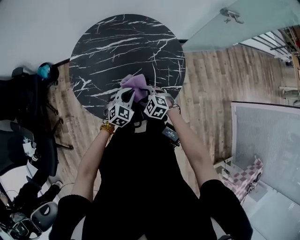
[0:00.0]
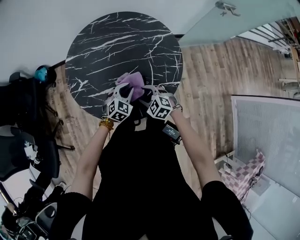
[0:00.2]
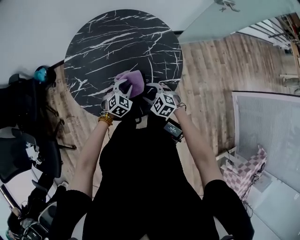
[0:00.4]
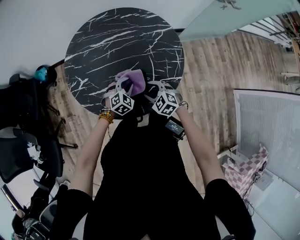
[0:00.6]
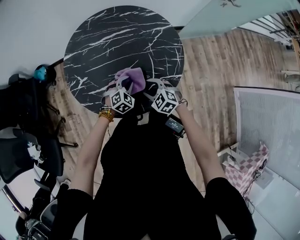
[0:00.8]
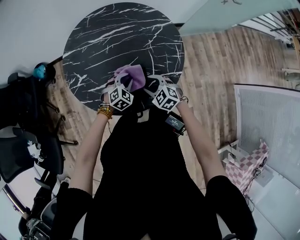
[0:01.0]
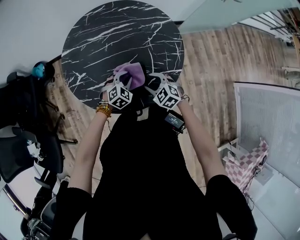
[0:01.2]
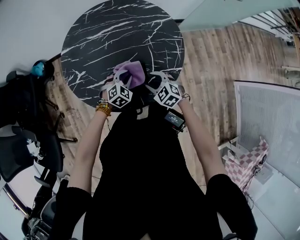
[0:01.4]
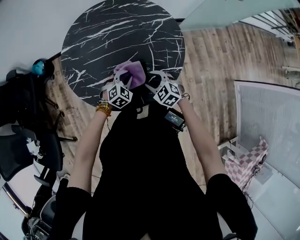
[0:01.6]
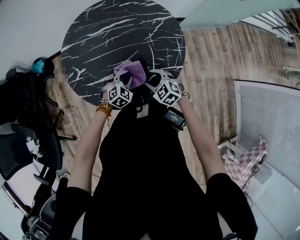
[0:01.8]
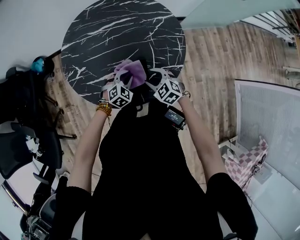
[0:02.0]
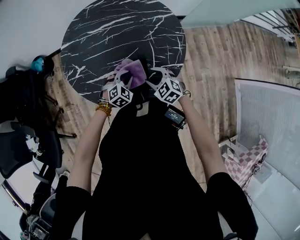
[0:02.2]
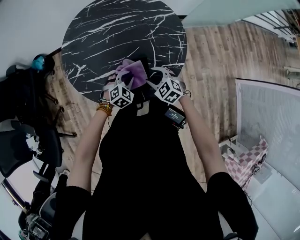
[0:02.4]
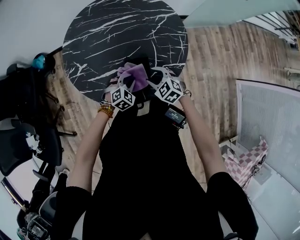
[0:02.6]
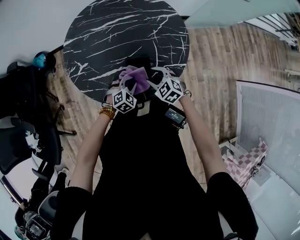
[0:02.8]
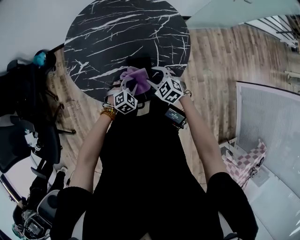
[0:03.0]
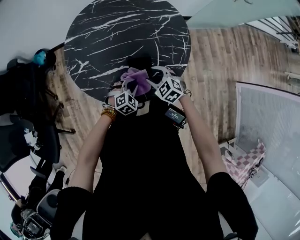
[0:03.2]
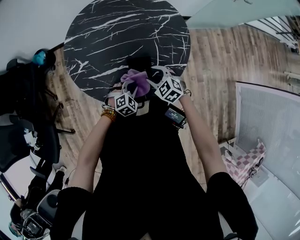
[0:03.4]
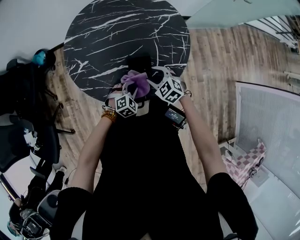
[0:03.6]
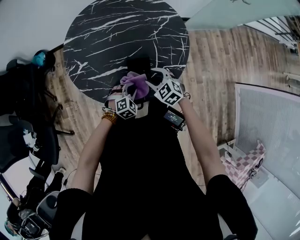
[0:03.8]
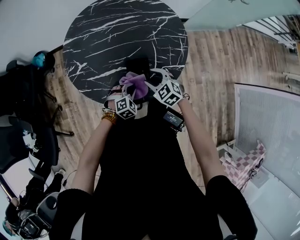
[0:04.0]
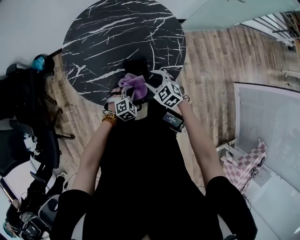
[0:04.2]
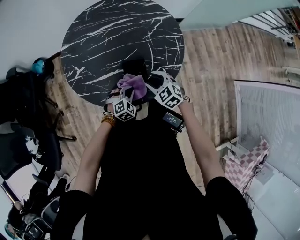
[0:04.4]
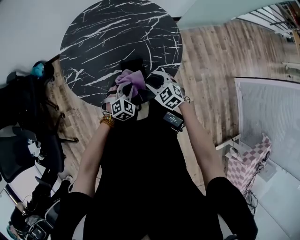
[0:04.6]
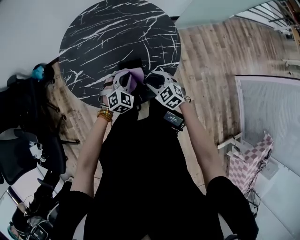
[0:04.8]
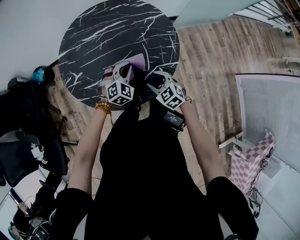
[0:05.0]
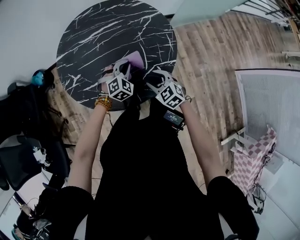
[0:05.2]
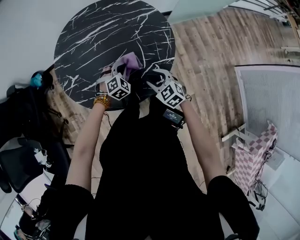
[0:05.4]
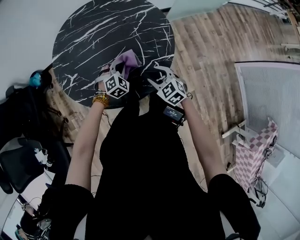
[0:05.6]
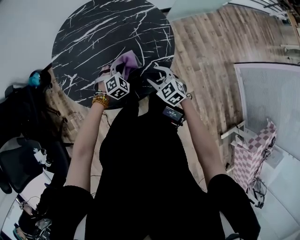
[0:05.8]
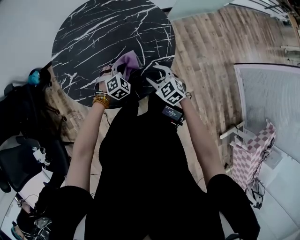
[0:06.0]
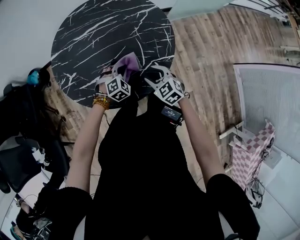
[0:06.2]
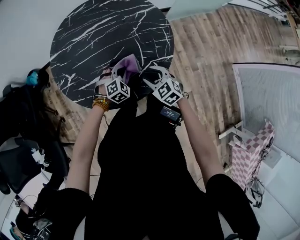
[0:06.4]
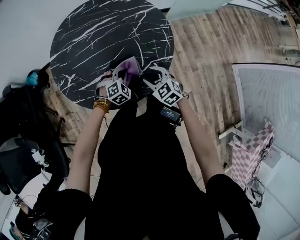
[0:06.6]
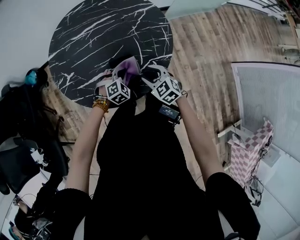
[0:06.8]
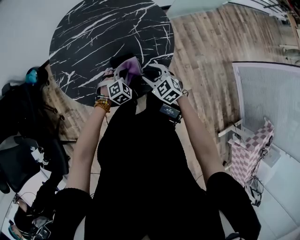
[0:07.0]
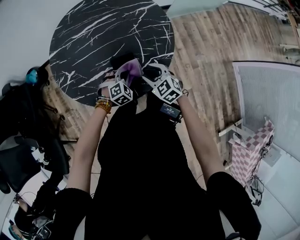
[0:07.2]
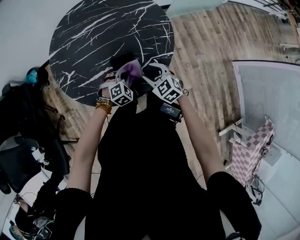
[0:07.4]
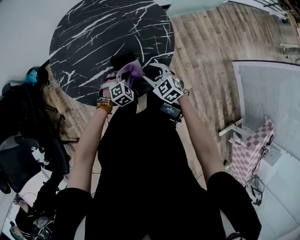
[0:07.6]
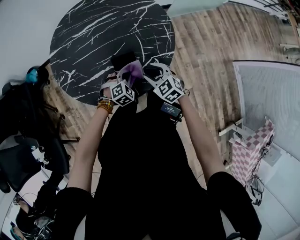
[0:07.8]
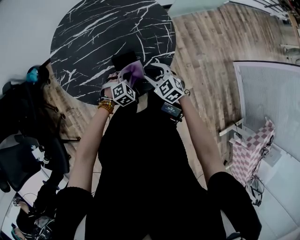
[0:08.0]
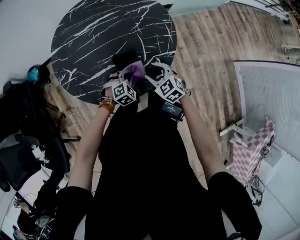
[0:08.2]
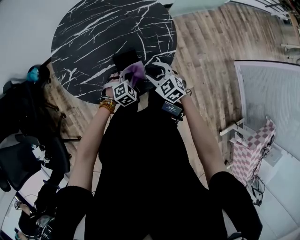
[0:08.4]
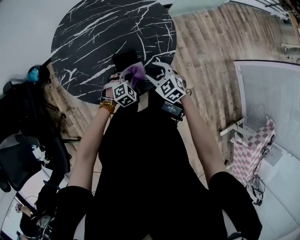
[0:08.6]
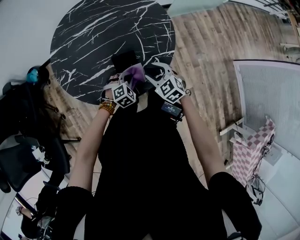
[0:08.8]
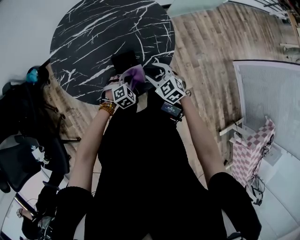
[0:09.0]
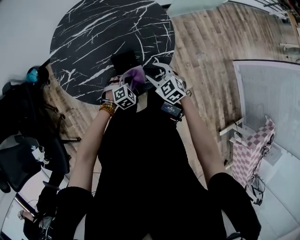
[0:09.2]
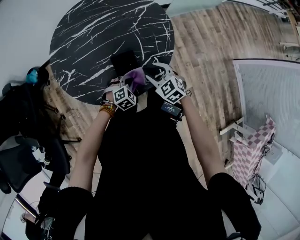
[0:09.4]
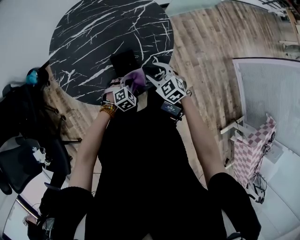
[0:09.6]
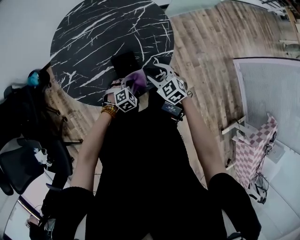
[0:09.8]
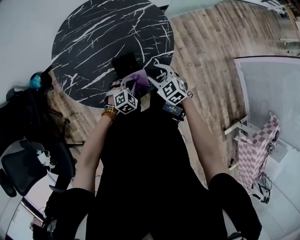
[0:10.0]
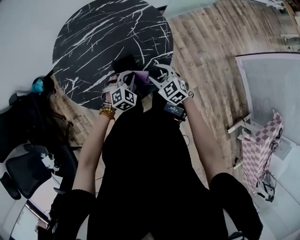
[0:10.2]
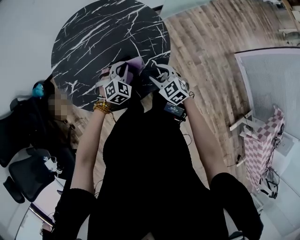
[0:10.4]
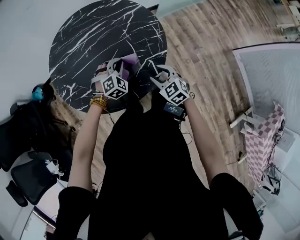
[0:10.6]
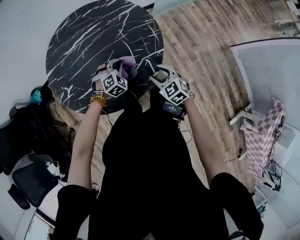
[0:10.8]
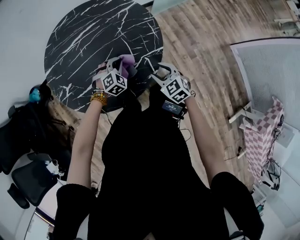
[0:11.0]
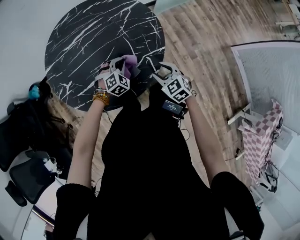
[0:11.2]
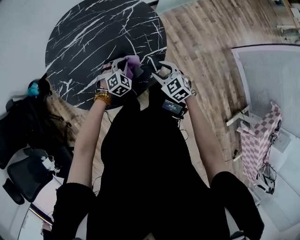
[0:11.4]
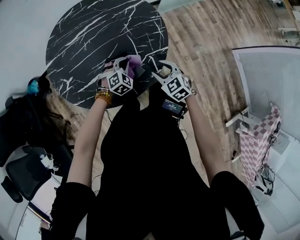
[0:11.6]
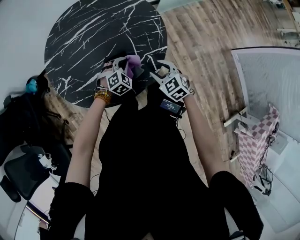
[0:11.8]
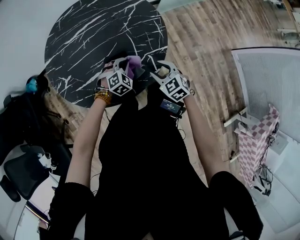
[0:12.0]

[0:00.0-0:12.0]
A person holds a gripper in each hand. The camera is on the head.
0.0 to 1.6 s: The left gripper is displaced downward by about 5 cm. Meanwhile the right gripper heads to the right, covering some 5 cm.
1.6 to 3.0 s: The left gripper goes about 5 cm backward.
3.0 to 4.4 s: The grippers stay close to where they were, moving slightly.
4.4 to 6.0 s: The left gripper is displaced forward by about 10 cm.
6.0 to 7.6 s: The left gripper is displaced backward by some 5 cm.
7.6 to 9.0 s: The grippers move only a little.
9.0 to 10.4 s: The left gripper travels upward and forward by about 15 cm.
10.4 to 12.0 s: The left gripper moves downward, approximately 5 cm.

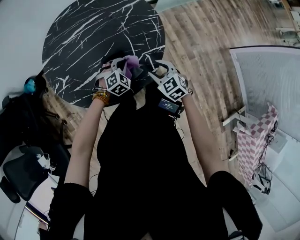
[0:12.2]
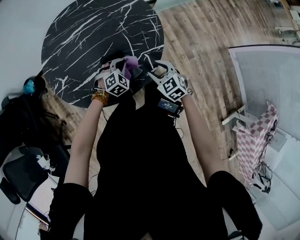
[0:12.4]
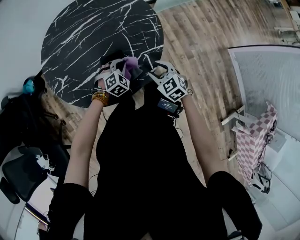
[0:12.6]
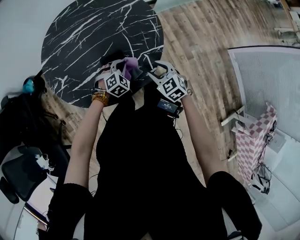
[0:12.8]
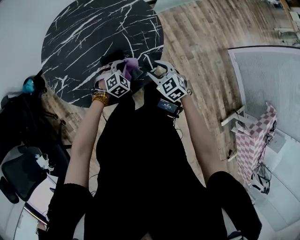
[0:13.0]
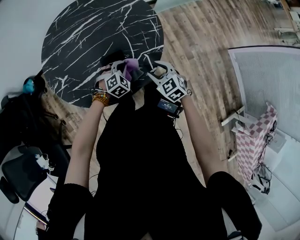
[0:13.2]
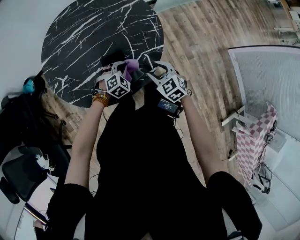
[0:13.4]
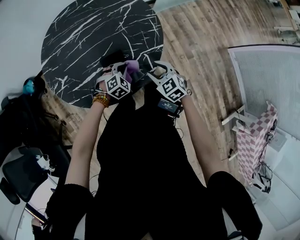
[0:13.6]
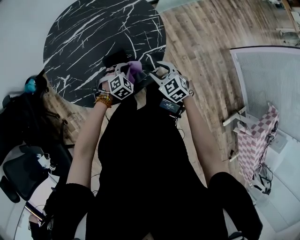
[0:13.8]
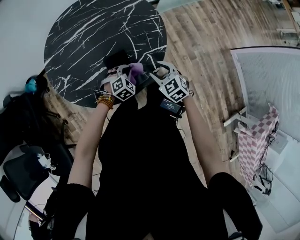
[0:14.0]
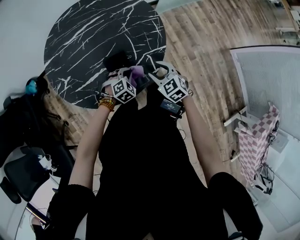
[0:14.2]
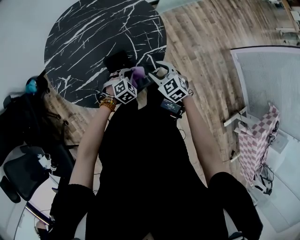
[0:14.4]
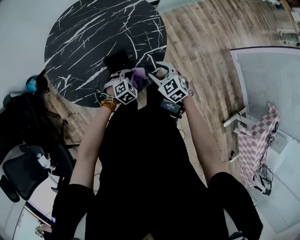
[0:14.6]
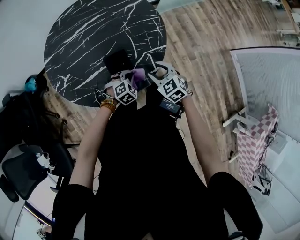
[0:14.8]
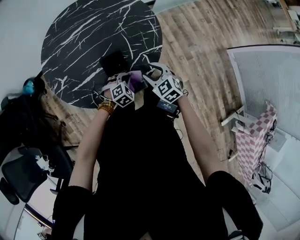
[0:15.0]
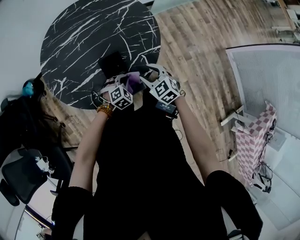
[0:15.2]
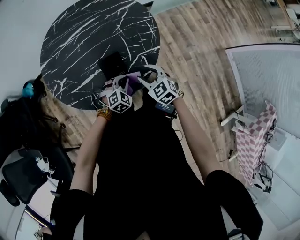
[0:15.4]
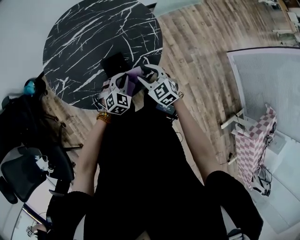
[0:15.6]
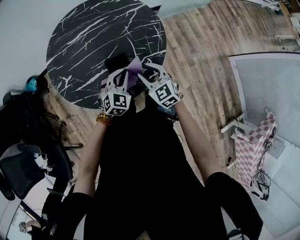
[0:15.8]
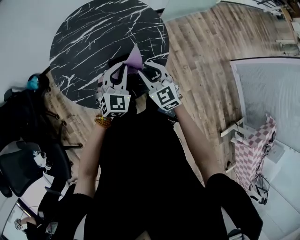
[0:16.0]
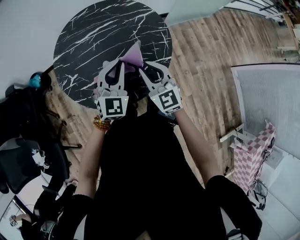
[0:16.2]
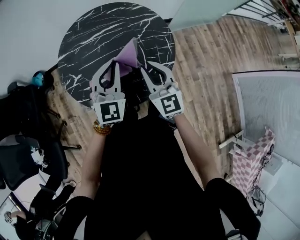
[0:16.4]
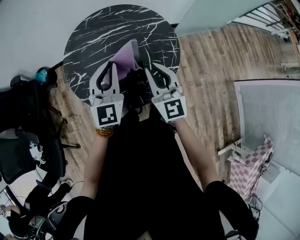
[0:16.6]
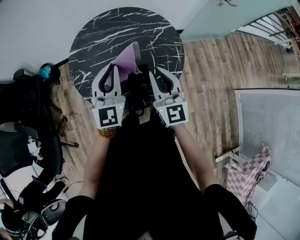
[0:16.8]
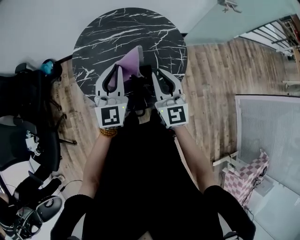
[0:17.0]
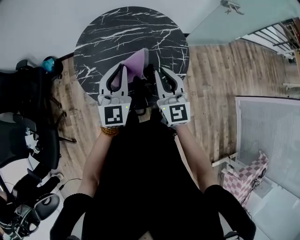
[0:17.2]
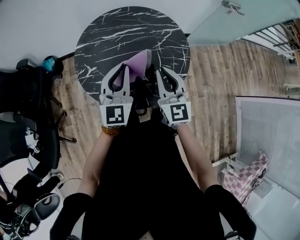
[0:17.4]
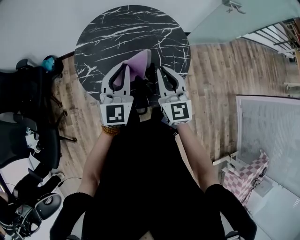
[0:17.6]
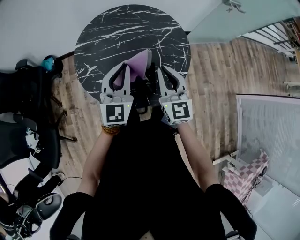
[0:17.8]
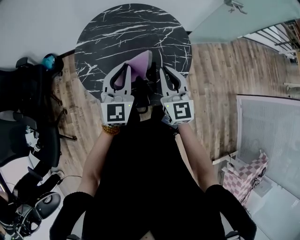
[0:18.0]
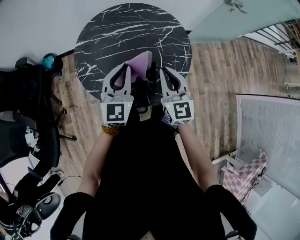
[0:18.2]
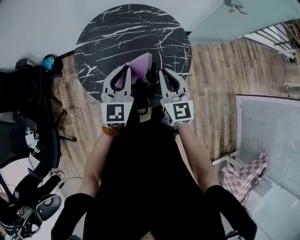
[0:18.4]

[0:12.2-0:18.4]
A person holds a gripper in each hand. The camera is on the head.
12.2 to 13.8 s: The grippers make only small movements.
13.8 to 15.4 s: The left gripper shifts approximately 5 cm backward.
15.4 to 16.8 s: The right gripper shifts roughly 25 cm upward, points its fingers about 40 degrees further upward, and closes up, while the left gripper moves upward and to the left, some 35 cm, and angles its fingers upward, by about 50 degrees.
16.8 to 18.4 s: The grippers make only small movements.

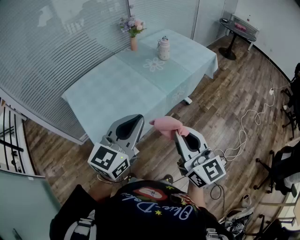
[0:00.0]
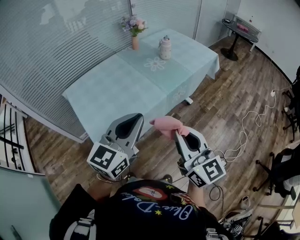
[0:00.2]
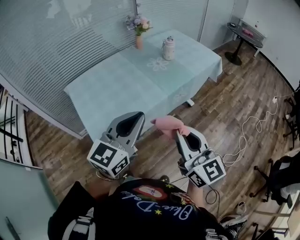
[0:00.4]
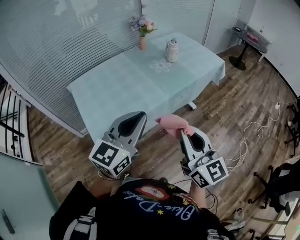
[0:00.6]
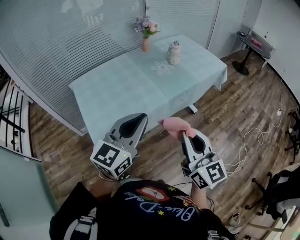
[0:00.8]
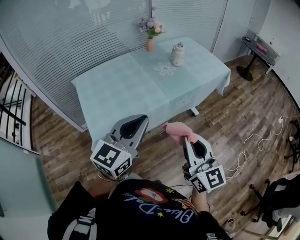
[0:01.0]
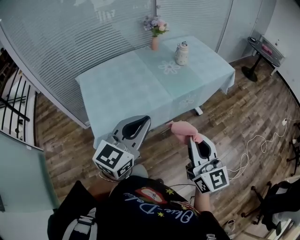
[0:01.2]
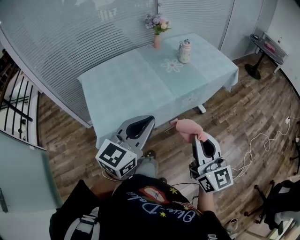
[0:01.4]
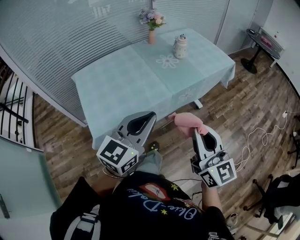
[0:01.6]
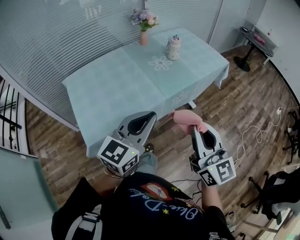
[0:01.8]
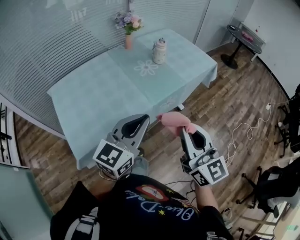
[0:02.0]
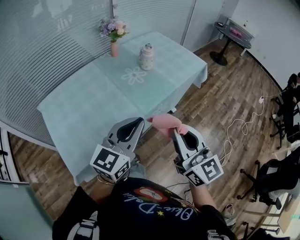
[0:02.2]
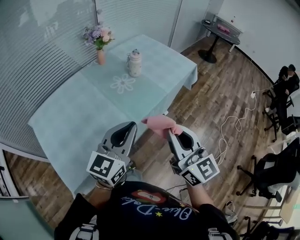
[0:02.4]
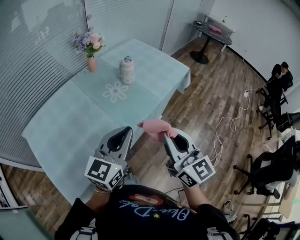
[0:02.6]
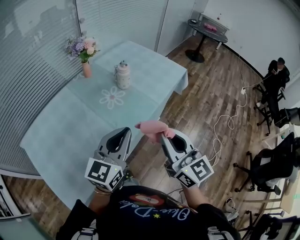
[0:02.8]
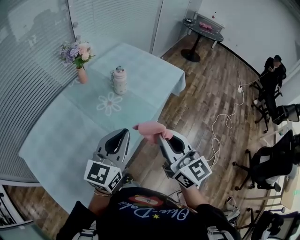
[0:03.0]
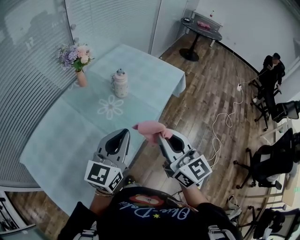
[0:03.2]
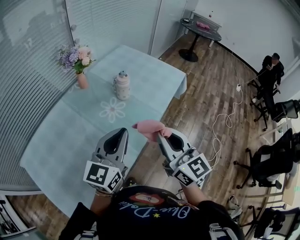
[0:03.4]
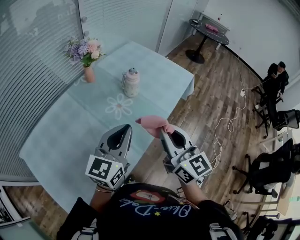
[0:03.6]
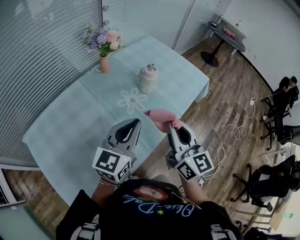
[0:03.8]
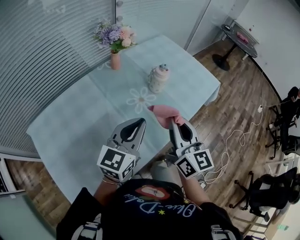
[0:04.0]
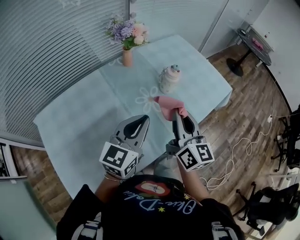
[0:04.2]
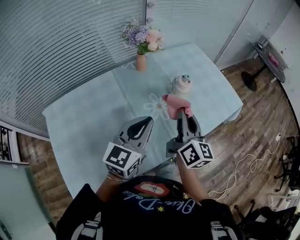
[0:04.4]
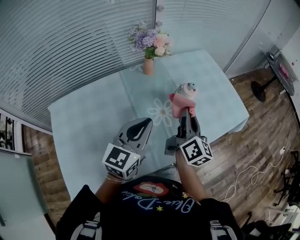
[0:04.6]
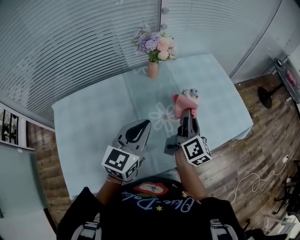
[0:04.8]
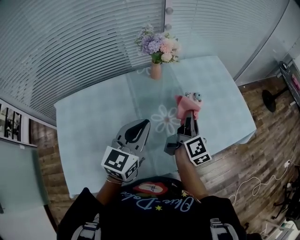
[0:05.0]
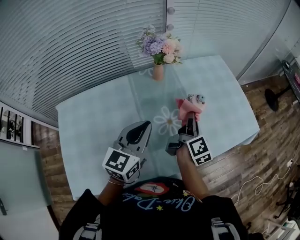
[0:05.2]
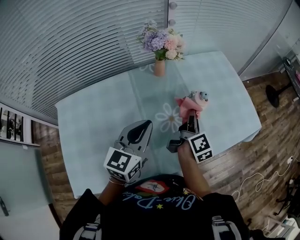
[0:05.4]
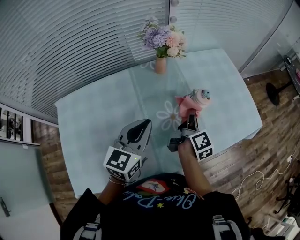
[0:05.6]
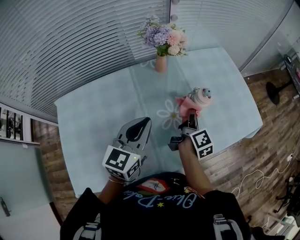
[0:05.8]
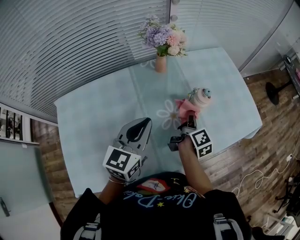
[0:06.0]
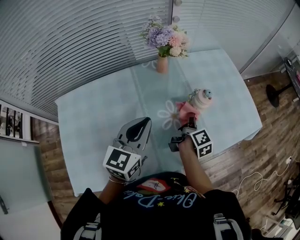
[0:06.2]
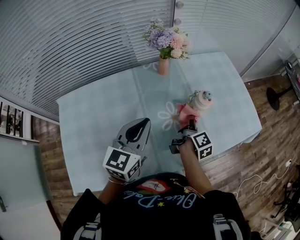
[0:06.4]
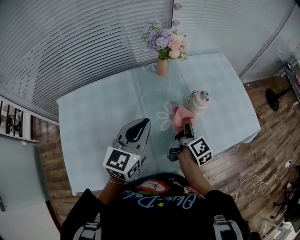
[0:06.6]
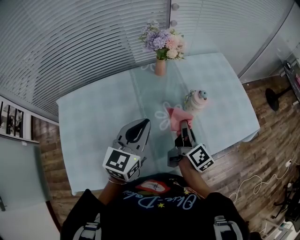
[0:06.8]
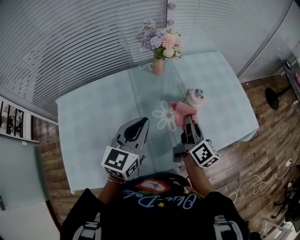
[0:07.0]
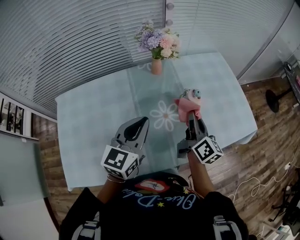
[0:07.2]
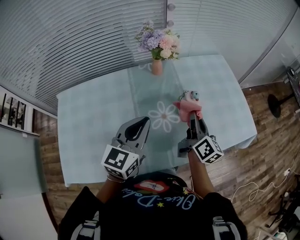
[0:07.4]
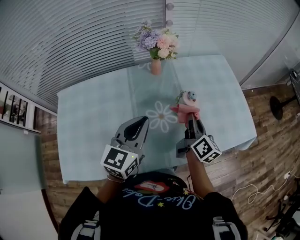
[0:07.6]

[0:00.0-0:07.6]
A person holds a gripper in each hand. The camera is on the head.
0.0 to 1.6 s: Both grippers move to the right, roughly 5 cm.
1.6 to 3.0 s: The two grippers go roughly 25 cm forward.
3.0 to 4.6 s: The left gripper heads forward and to the left, covering roughly 15 cm, and rotates some 30 degrees; the right gripper moves forward, roughly 25 cm, and changes its angle by some 30 degrees.
4.6 to 6.0 s: The right gripper travels downward and forward by about 15 cm, and turns by some 30 degrees. Meanwhile the left gripper moves approximately 5 cm.
6.0 to 7.6 s: The right gripper goes roughly 5 cm upward, and changes its angle by some 40 degrees, while the left gripper travels to the right by about 5 cm.
